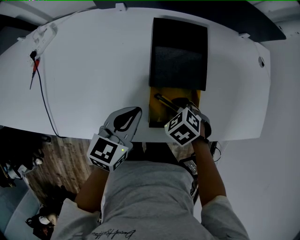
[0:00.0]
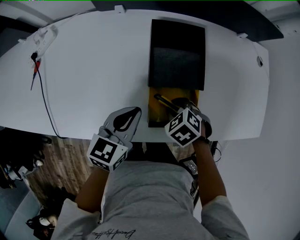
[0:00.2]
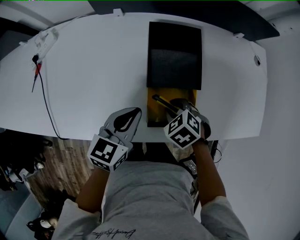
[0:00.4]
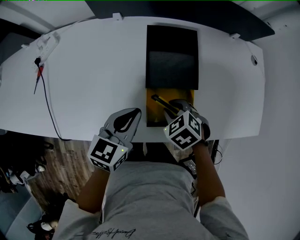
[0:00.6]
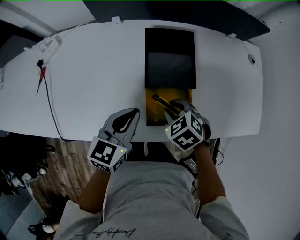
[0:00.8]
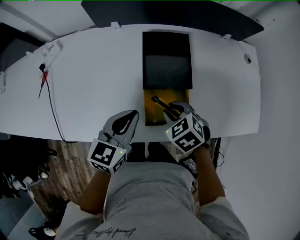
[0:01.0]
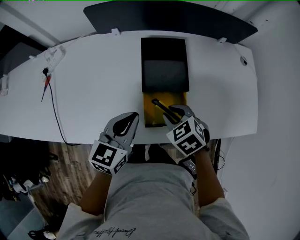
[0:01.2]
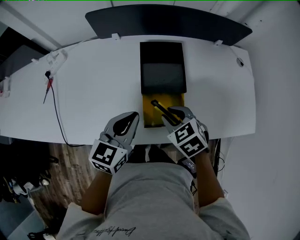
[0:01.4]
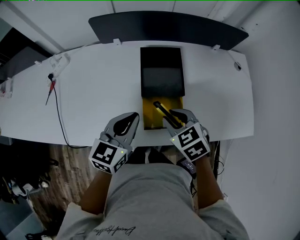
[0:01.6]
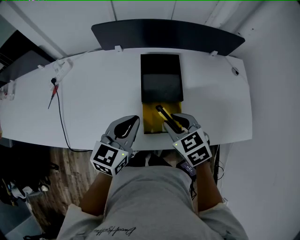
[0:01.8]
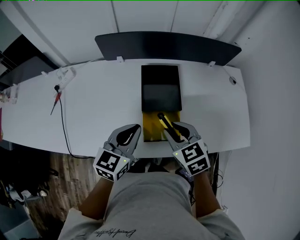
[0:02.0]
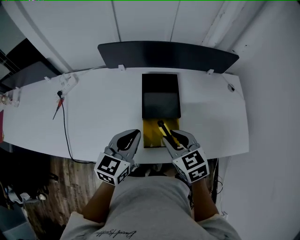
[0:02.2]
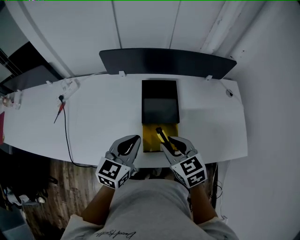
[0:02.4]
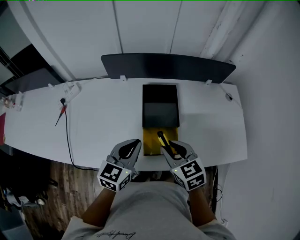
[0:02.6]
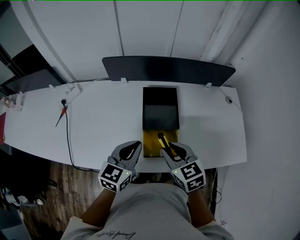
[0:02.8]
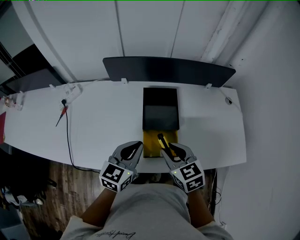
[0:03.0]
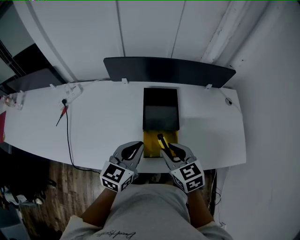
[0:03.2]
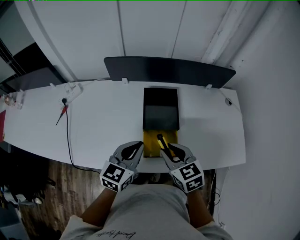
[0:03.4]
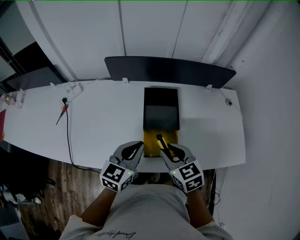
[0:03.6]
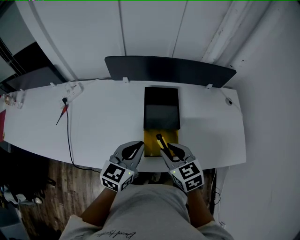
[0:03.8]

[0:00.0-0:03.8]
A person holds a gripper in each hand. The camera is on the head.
0:00.0 to 0:01.2: The grippers both shift upward by approximately 10 cm.
0:01.2 to 0:02.6: The left gripper shifts about 5 cm upward; the right gripper is displaced upward by approximately 15 cm, and turns by about 30 degrees.
0:02.6 to 0:03.8: The two grippers keep their place.

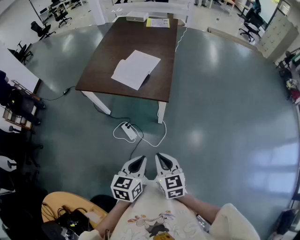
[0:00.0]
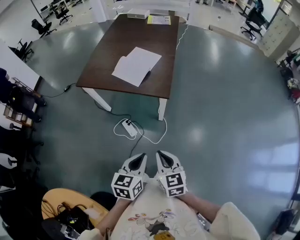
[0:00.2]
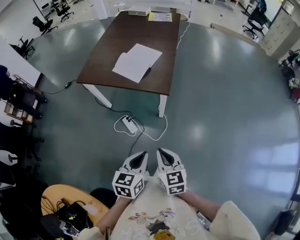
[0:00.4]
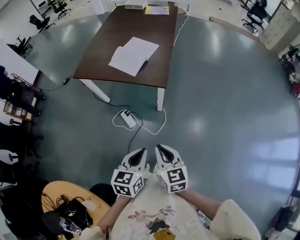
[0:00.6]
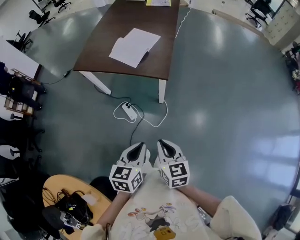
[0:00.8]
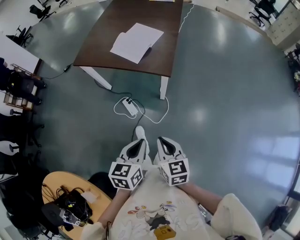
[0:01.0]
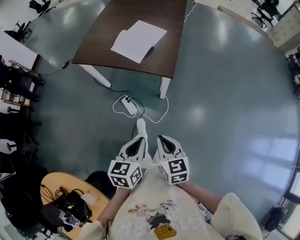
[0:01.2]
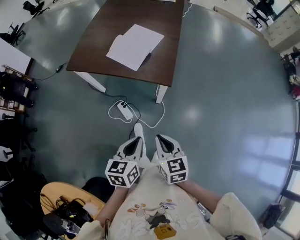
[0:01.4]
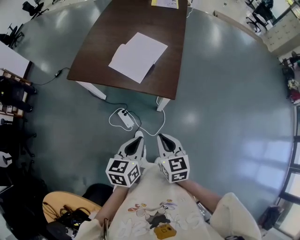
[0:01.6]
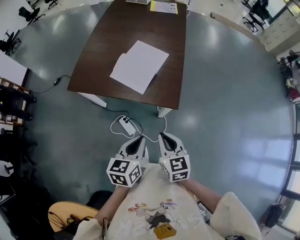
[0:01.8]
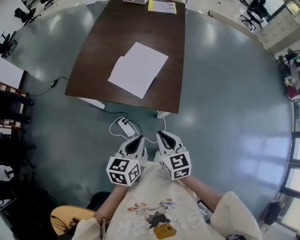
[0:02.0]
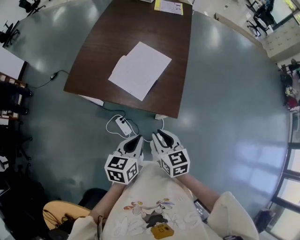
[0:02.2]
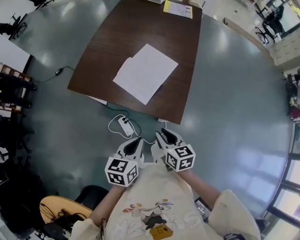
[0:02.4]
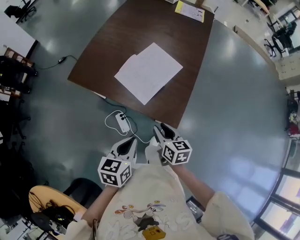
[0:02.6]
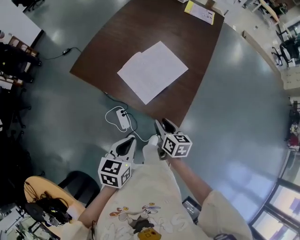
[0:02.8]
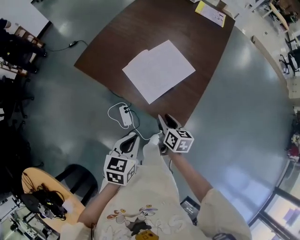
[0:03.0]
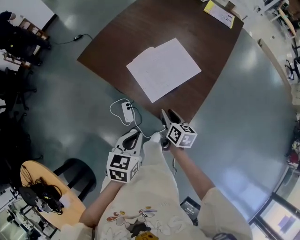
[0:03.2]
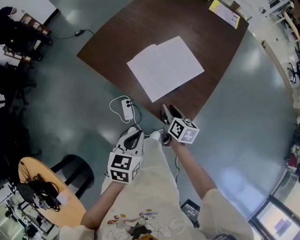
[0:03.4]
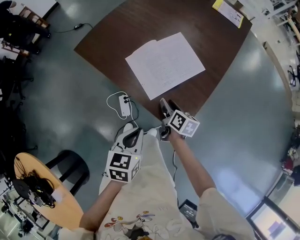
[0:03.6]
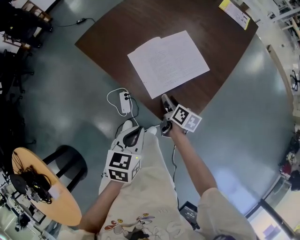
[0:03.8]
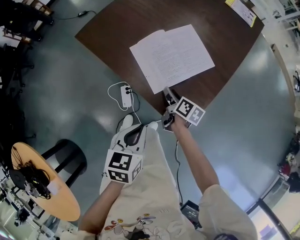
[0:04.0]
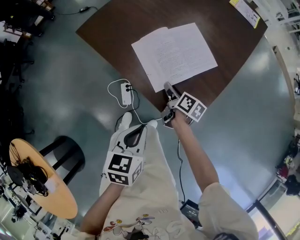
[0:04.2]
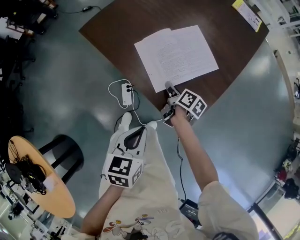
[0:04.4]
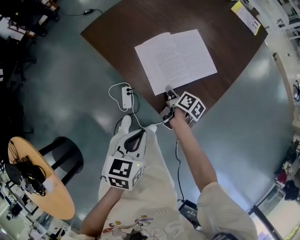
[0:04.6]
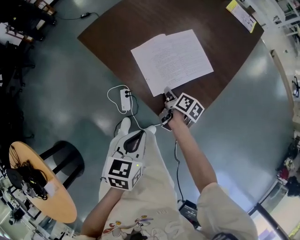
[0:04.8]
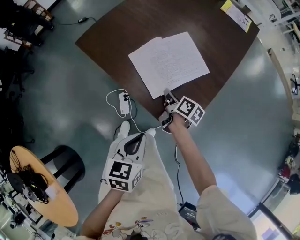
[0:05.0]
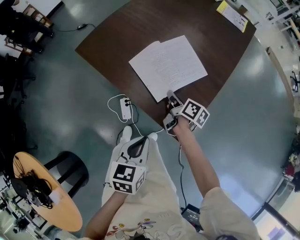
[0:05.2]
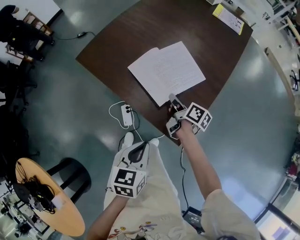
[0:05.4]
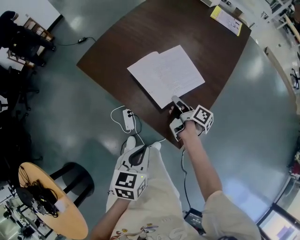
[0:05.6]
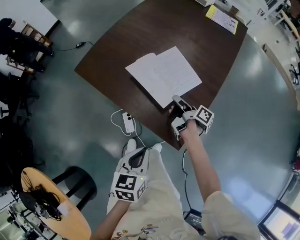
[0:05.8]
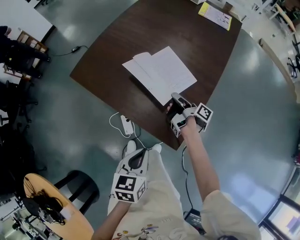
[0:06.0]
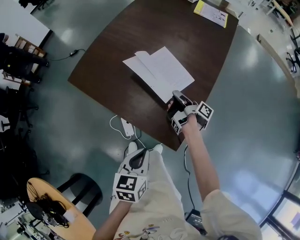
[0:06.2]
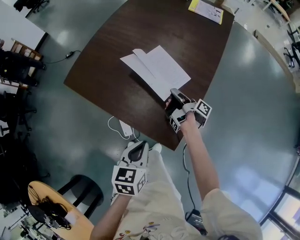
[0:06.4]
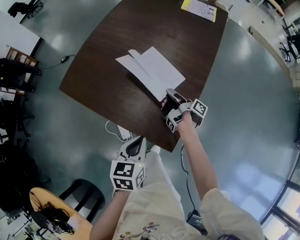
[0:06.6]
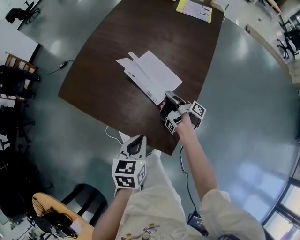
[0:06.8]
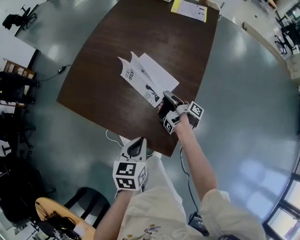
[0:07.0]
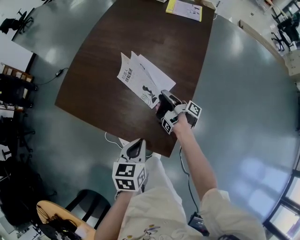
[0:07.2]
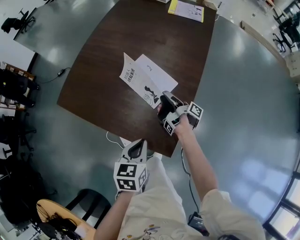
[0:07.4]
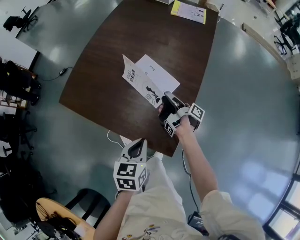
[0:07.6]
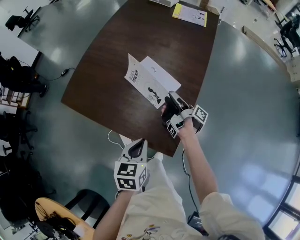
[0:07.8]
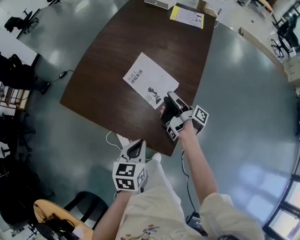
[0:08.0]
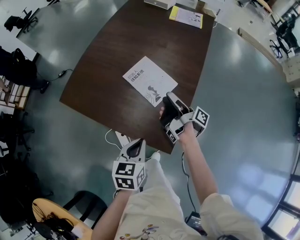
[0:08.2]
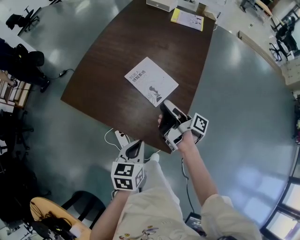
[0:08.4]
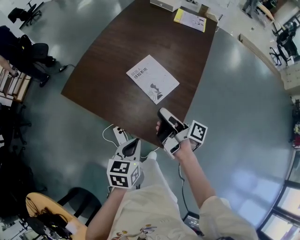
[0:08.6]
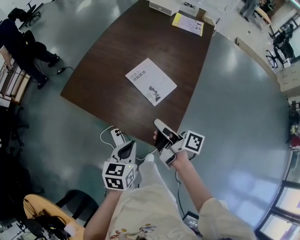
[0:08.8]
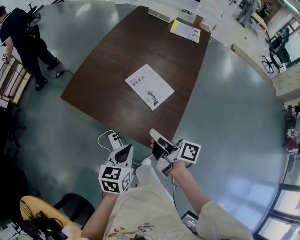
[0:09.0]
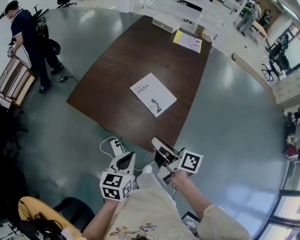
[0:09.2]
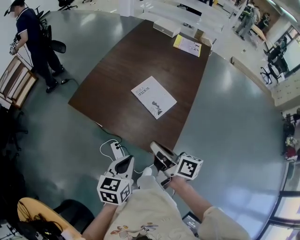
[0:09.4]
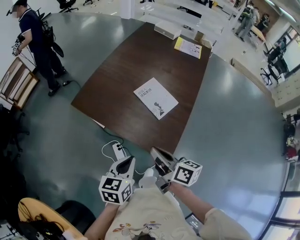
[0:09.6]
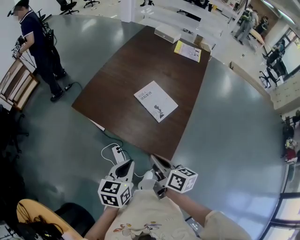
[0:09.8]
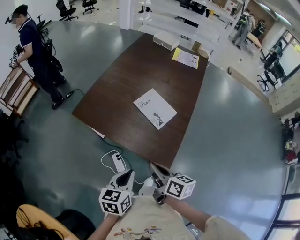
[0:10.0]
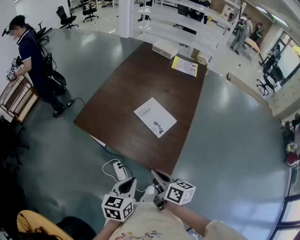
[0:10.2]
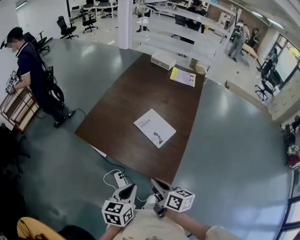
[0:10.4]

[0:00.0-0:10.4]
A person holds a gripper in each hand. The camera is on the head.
0:00.0 to 0:01.4: Both grippers travel together forward, approximately 10 cm.
0:01.4 to 0:03.0: Both grippers travel together forward, approximately 30 cm. The right gripper rotates some 20 degrees, and opens.
0:03.0 to 0:04.4: The right gripper is displaced forward and downward by approximately 15 cm, and swivels about 30 degrees, while the left gripper moves some 5 cm.
0:04.4 to 0:06.0: The right gripper heads to the right and upward, covering roughly 15 cm, swivels some 50 degrees, and closes. The left gripper heads to the right, covering about 5 cm.
0:06.0 to 0:07.4: The left gripper travels forward by some 10 cm. The right gripper is displaced to the right by roughly 5 cm, and opens its fingers.
0:07.4 to 0:09.0: The right gripper shifts about 30 cm upward, backward and to the left, and turns by roughly 40 degrees; the left gripper moves to the left, backward and upward, approximately 10 cm.
0:09.0 to 0:10.4: The right gripper is displaced backward and to the left by about 10 cm, changes its angle by roughly 30 degrees, and closes. Meanwhile the left gripper goes some 10 cm upward, to the left and backward.

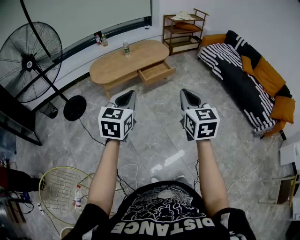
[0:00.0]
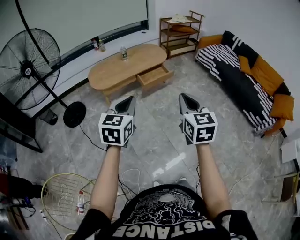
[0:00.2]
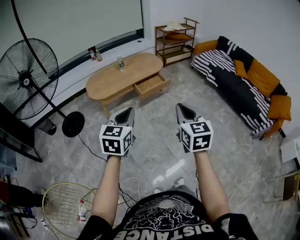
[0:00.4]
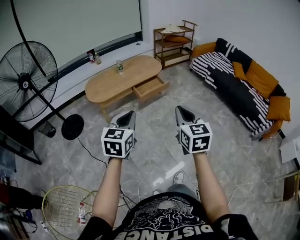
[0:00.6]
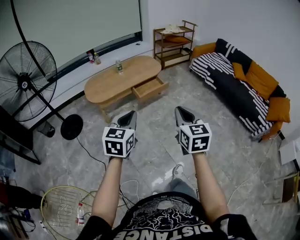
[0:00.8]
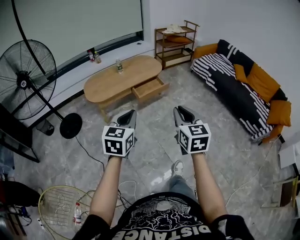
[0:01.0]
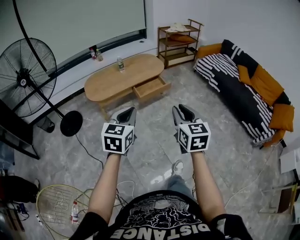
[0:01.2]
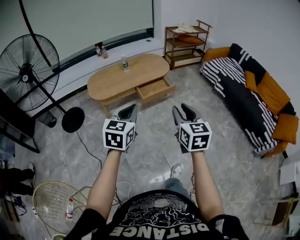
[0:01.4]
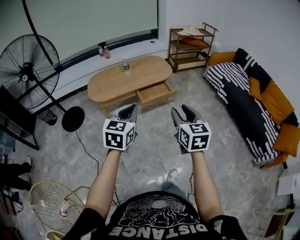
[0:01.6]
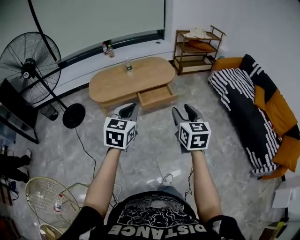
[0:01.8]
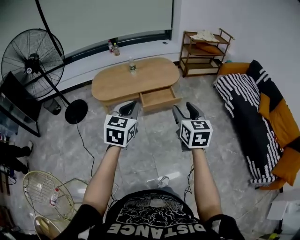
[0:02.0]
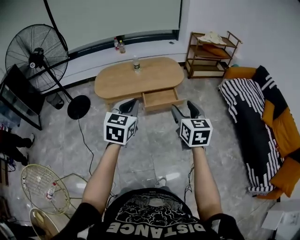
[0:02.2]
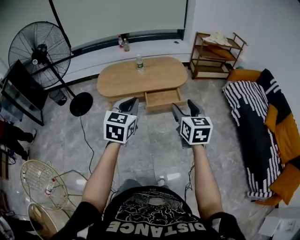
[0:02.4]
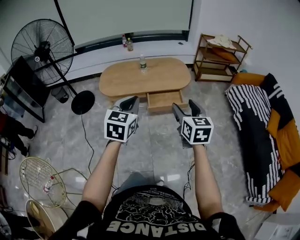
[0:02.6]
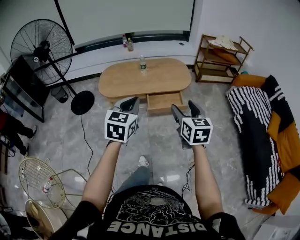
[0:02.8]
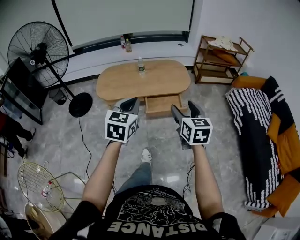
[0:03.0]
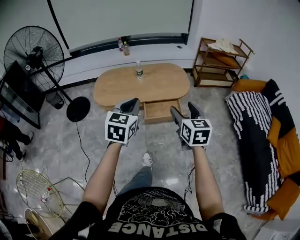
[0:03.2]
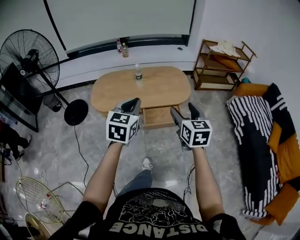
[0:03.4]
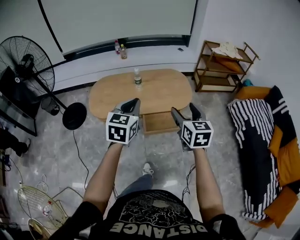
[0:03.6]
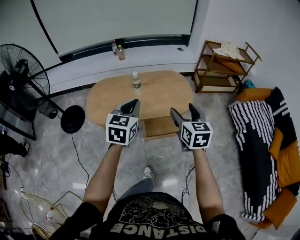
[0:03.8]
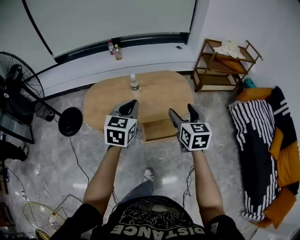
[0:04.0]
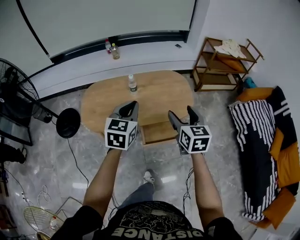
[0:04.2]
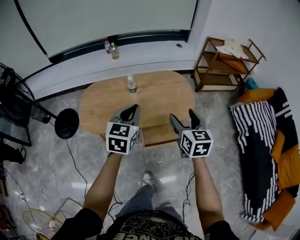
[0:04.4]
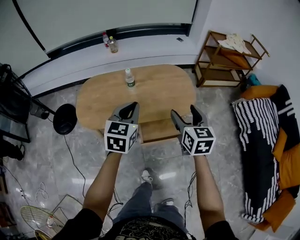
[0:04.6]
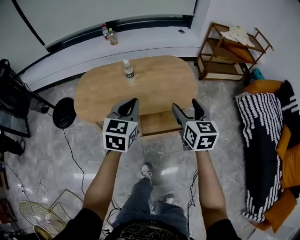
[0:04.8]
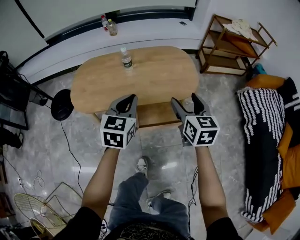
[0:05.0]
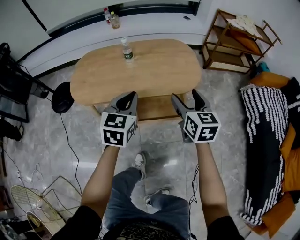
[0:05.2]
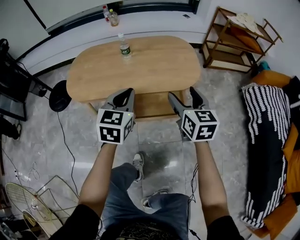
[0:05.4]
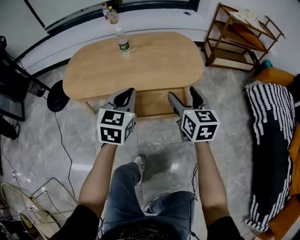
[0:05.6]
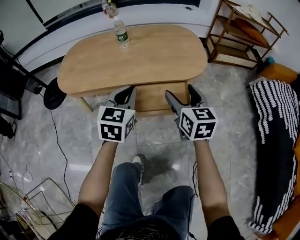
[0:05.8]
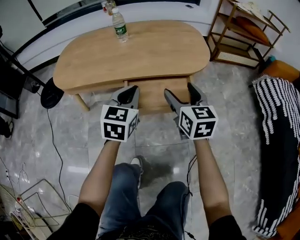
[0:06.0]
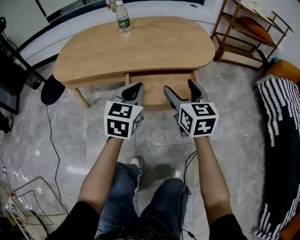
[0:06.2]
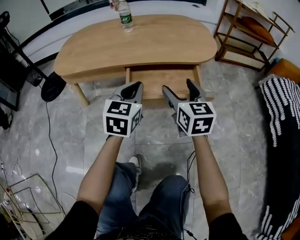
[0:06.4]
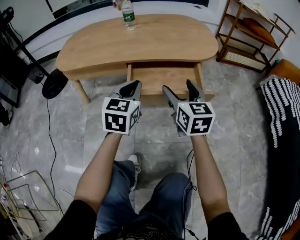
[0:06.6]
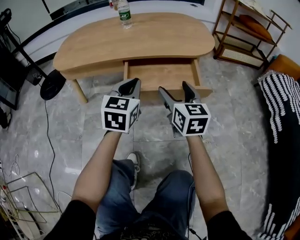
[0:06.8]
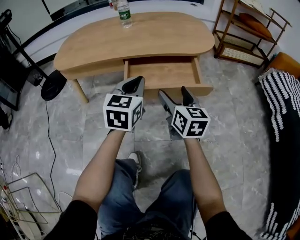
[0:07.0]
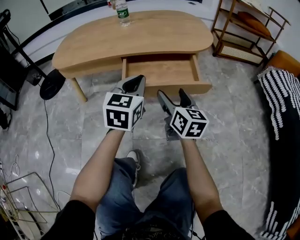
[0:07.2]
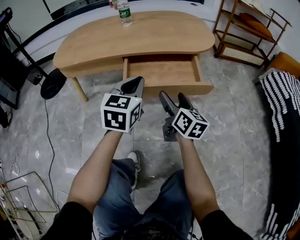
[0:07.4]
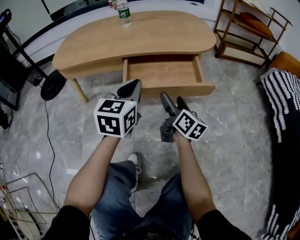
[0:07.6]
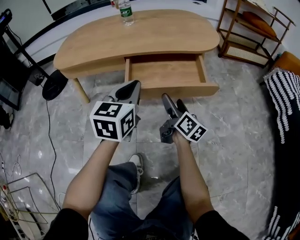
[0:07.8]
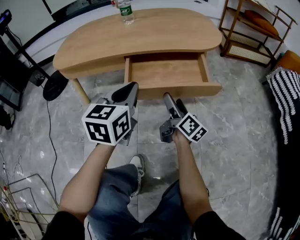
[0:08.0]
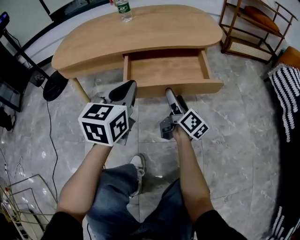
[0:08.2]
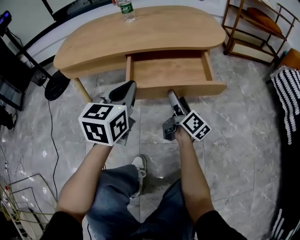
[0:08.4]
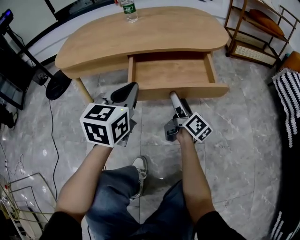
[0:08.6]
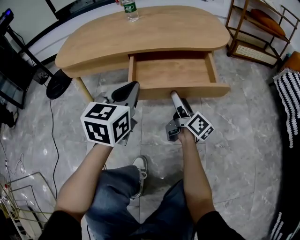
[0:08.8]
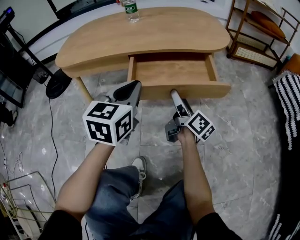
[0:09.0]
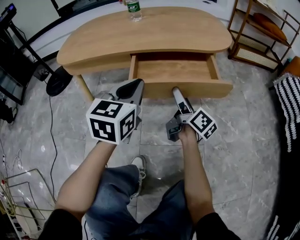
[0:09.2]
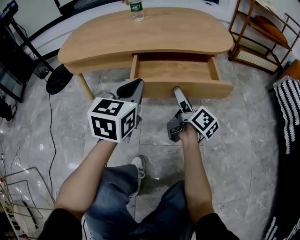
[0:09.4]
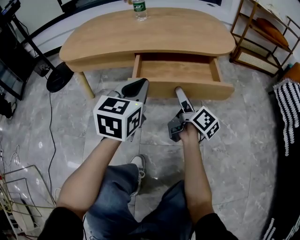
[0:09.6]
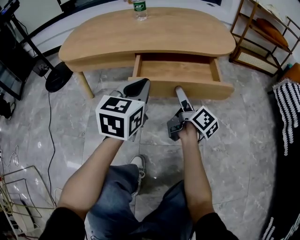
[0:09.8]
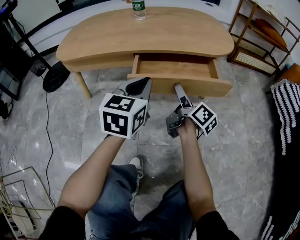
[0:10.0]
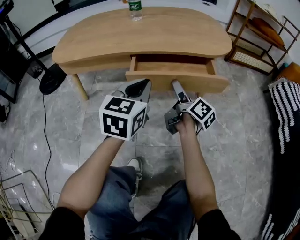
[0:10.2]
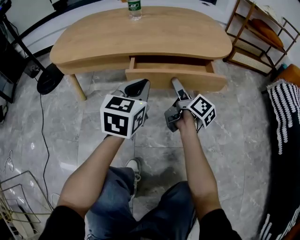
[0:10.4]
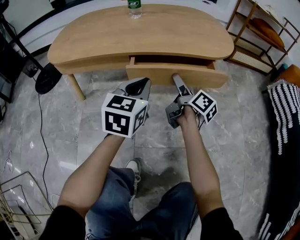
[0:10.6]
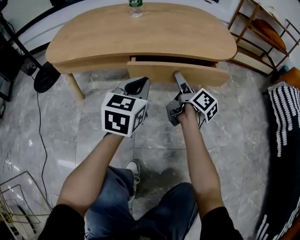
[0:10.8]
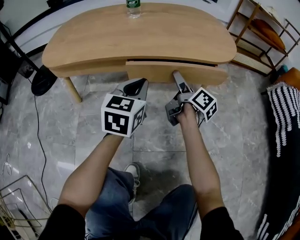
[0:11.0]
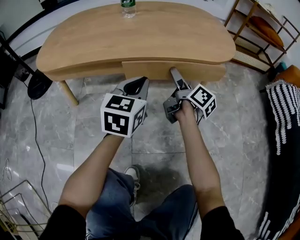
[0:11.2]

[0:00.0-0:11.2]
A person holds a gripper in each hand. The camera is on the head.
0:00.0 to 0:01.6: The right gripper shifts some 20 cm forward, and opens its fingers. The left gripper heads forward and to the right, covering approximately 20 cm.
0:01.6 to 0:03.2: The grippers both shift forward by roughly 25 cm.
0:03.2 to 0:04.8: Both grippers move forward and downward, about 30 cm.
0:04.8 to 0:06.4: Both grippers move downward, about 35 cm.
0:06.4 to 0:08.0: The right gripper shifts approximately 15 cm downward, and twists about 50 degrees clockwise, seen from behind.
0:08.0 to 0:09.6: There are only small adjustments of the grippers.
0:09.6 to 0:11.2: The two grippers go roughly 10 cm forward.
